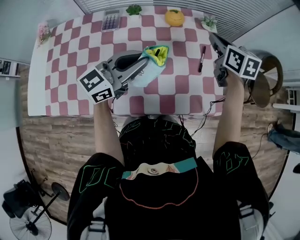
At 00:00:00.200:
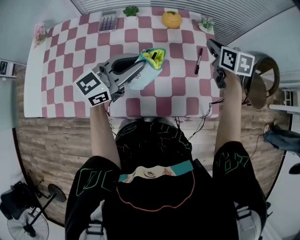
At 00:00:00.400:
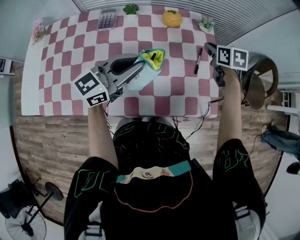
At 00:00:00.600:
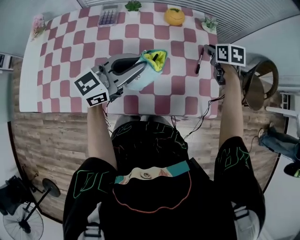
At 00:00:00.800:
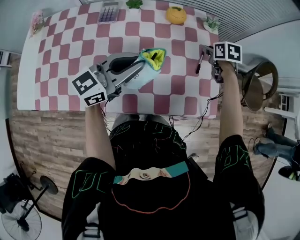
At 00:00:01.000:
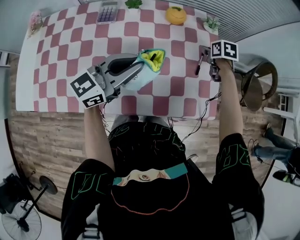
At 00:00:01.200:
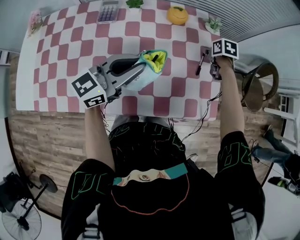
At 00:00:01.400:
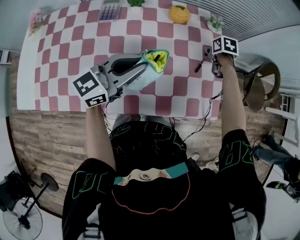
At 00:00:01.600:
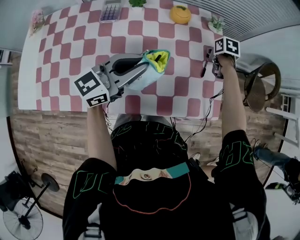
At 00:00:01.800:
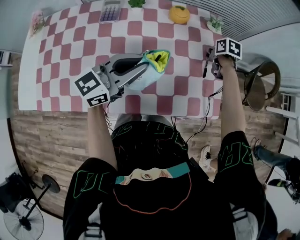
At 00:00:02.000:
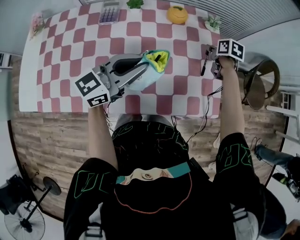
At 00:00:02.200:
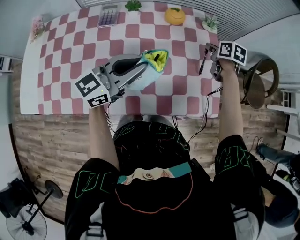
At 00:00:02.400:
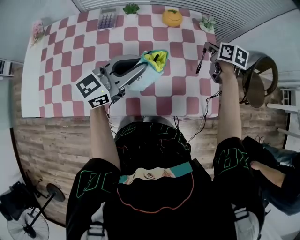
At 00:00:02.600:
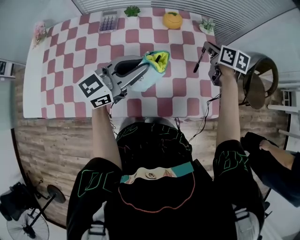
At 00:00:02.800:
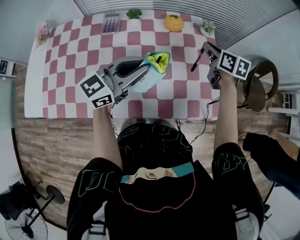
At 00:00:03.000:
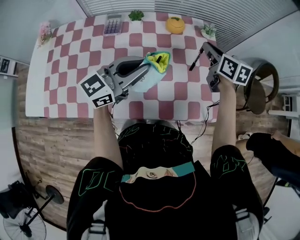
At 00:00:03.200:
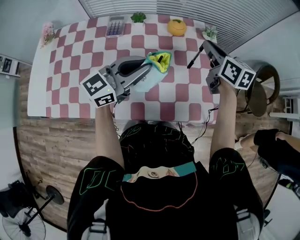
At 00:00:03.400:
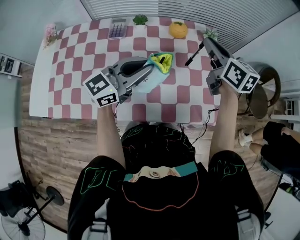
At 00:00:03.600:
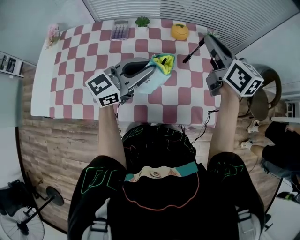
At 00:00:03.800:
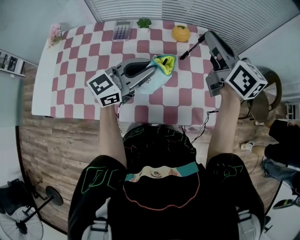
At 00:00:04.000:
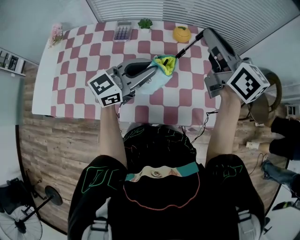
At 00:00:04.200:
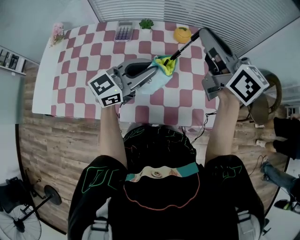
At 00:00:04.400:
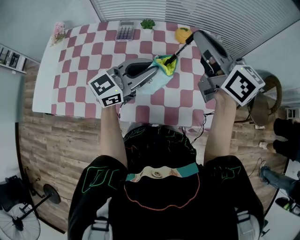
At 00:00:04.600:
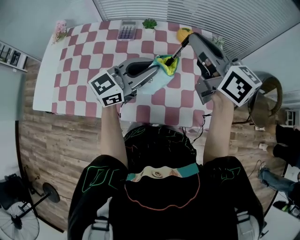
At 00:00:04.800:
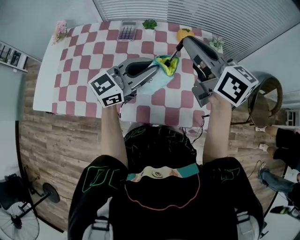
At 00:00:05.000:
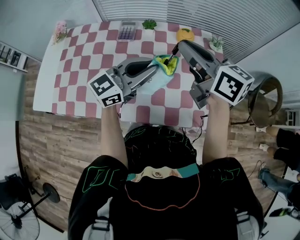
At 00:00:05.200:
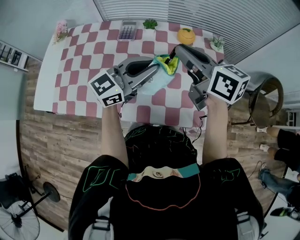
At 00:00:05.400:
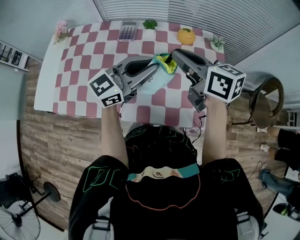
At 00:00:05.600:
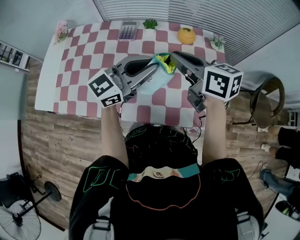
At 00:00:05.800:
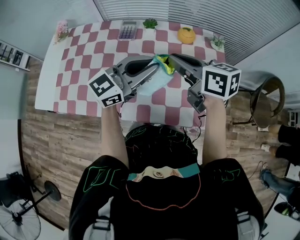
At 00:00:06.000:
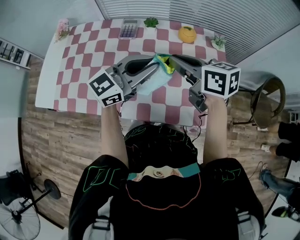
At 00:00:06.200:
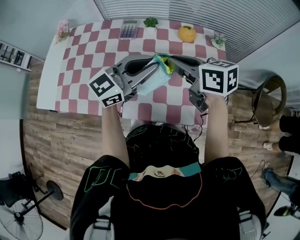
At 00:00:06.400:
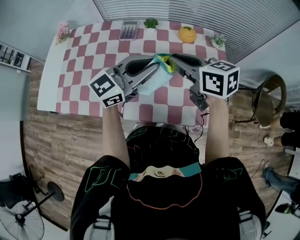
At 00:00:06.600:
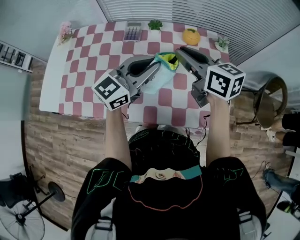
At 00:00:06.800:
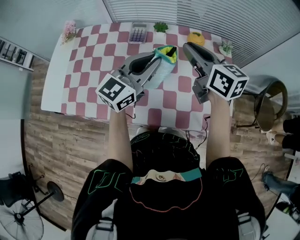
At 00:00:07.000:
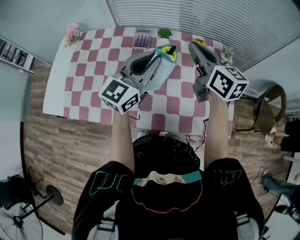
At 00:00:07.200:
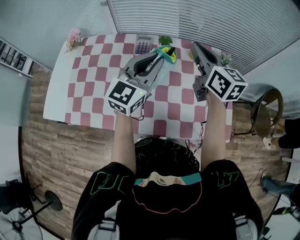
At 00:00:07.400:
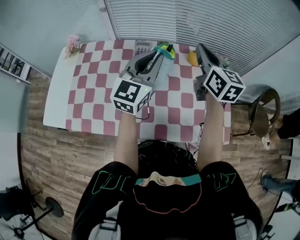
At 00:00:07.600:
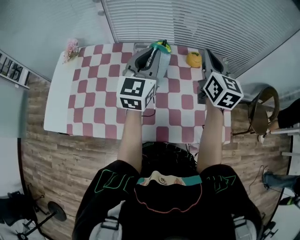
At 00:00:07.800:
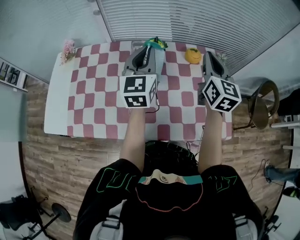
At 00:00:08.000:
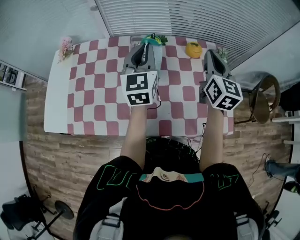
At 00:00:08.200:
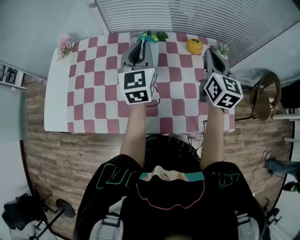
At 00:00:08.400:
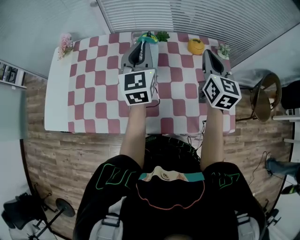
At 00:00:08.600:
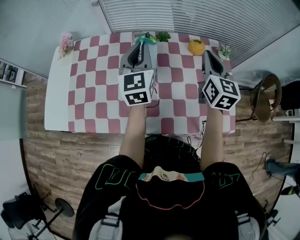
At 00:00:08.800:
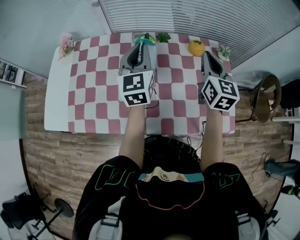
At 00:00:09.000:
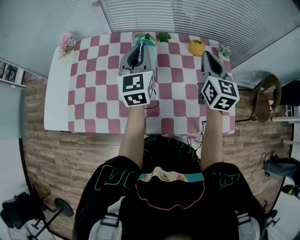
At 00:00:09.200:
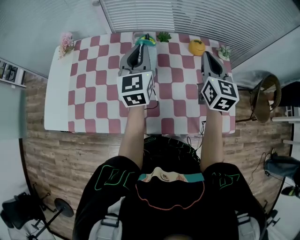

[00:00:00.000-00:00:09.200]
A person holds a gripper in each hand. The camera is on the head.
00:00:00.000 to 00:00:01.600: The right gripper shifts about 20 cm downward, and angles its fingers downward, by roughly 40 degrees.
00:00:01.600 to 00:00:03.000: The right gripper moves upward, approximately 20 cm, and tilts its fingers some 40 degrees upward.
00:00:03.000 to 00:00:04.600: The right gripper goes approximately 25 cm upward, to the left and backward, and turns by roughly 30 degrees.
00:00:04.600 to 00:00:06.200: The right gripper heads downward, covering approximately 10 cm, and changes its angle by roughly 30 degrees.
00:00:06.200 to 00:00:07.600: The left gripper travels forward, to the left and upward by roughly 15 cm, and swivels roughly 40 degrees; the right gripper travels forward and upward by approximately 15 cm, and swivels roughly 50 degrees.
00:00:07.600 to 00:00:09.200: The left gripper moves to the left and downward, approximately 10 cm. Meanwhile the right gripper is displaced downward by some 5 cm.

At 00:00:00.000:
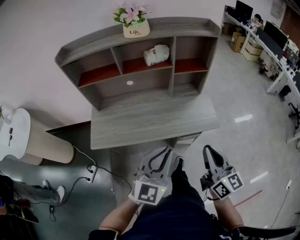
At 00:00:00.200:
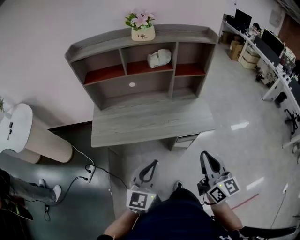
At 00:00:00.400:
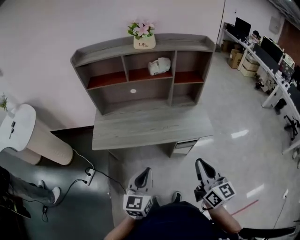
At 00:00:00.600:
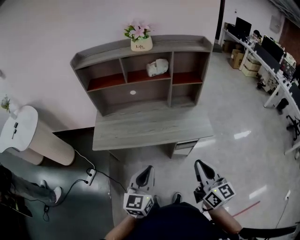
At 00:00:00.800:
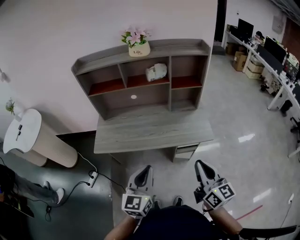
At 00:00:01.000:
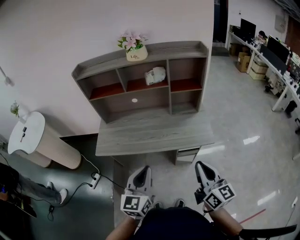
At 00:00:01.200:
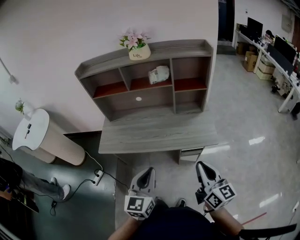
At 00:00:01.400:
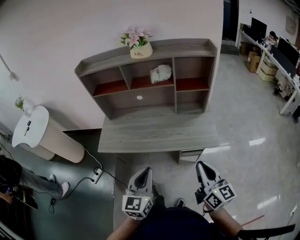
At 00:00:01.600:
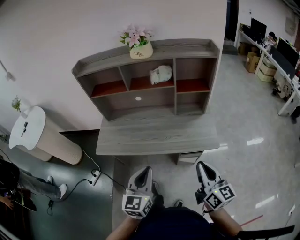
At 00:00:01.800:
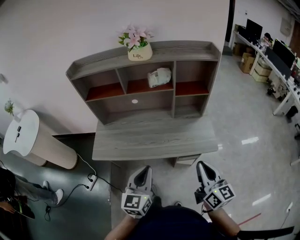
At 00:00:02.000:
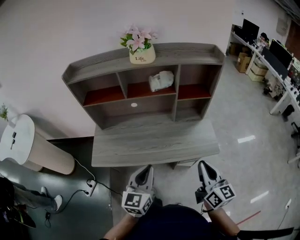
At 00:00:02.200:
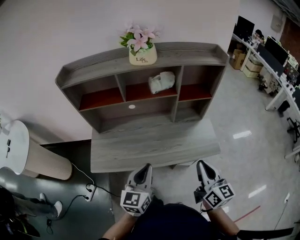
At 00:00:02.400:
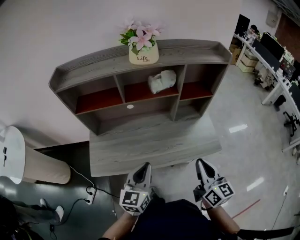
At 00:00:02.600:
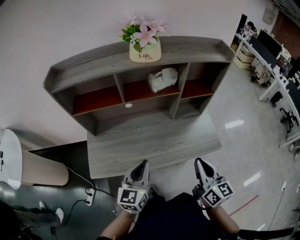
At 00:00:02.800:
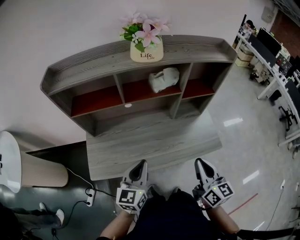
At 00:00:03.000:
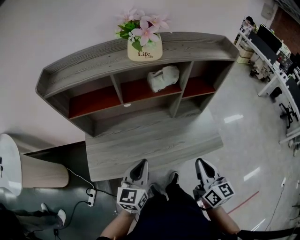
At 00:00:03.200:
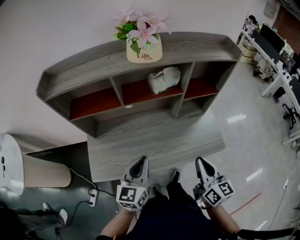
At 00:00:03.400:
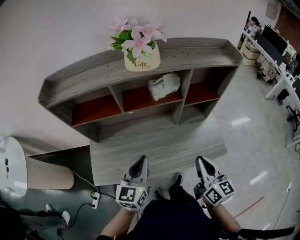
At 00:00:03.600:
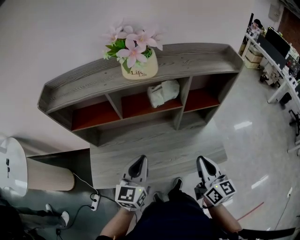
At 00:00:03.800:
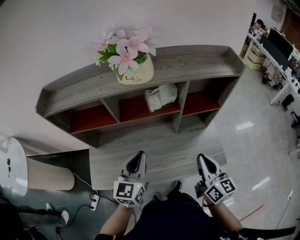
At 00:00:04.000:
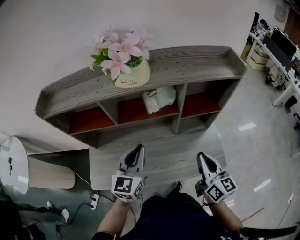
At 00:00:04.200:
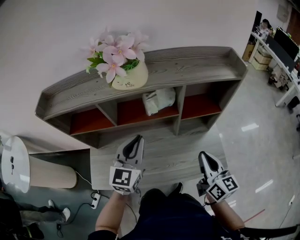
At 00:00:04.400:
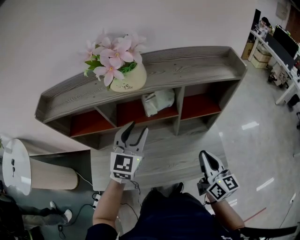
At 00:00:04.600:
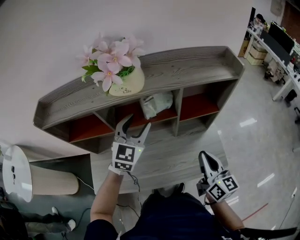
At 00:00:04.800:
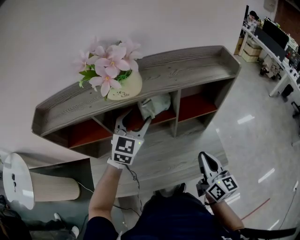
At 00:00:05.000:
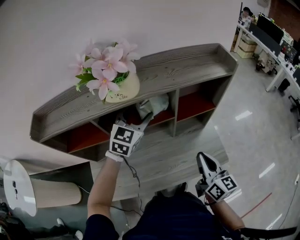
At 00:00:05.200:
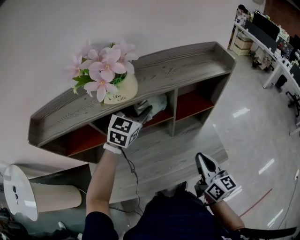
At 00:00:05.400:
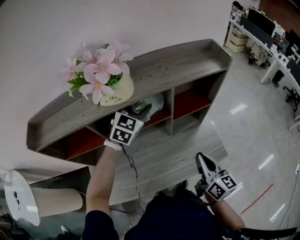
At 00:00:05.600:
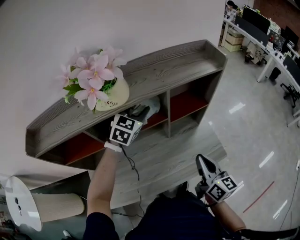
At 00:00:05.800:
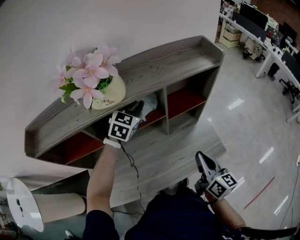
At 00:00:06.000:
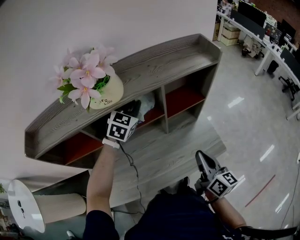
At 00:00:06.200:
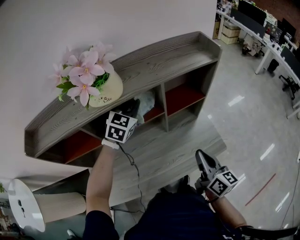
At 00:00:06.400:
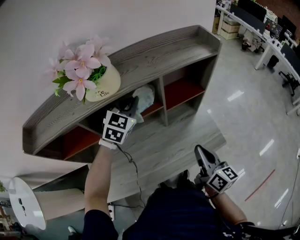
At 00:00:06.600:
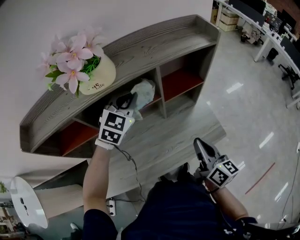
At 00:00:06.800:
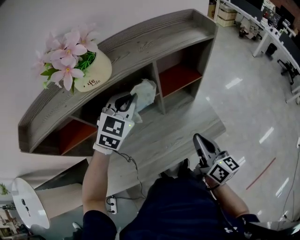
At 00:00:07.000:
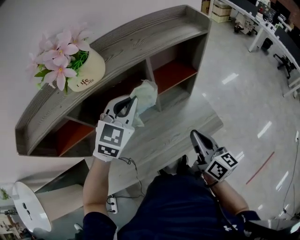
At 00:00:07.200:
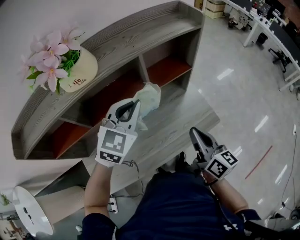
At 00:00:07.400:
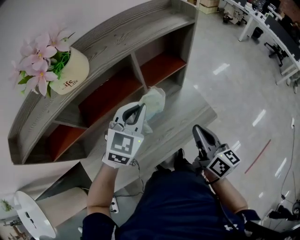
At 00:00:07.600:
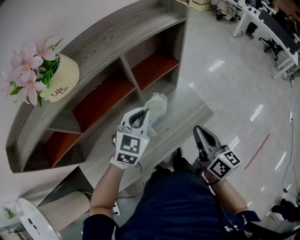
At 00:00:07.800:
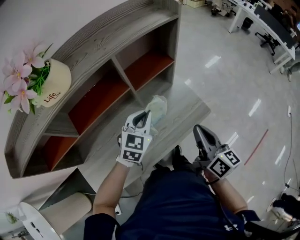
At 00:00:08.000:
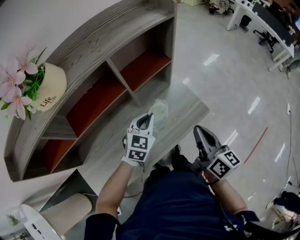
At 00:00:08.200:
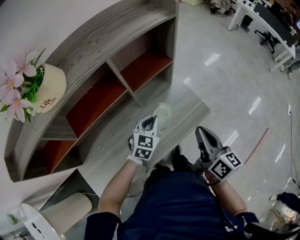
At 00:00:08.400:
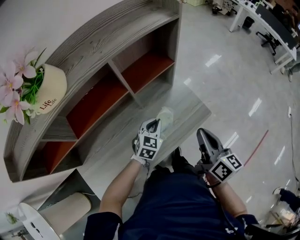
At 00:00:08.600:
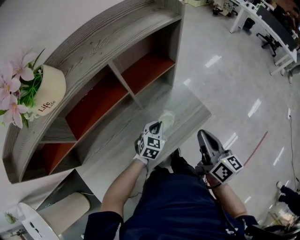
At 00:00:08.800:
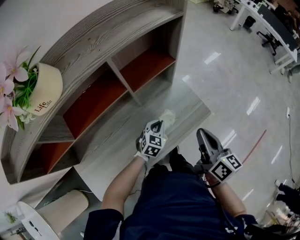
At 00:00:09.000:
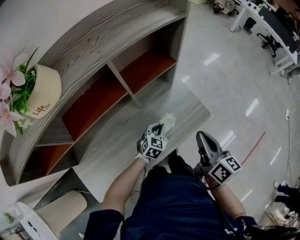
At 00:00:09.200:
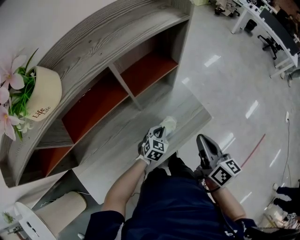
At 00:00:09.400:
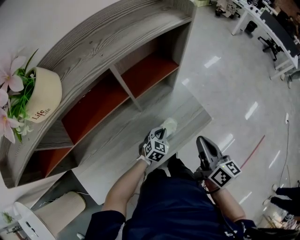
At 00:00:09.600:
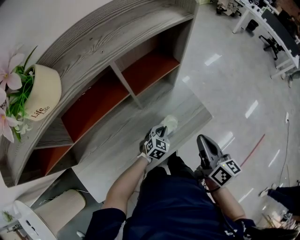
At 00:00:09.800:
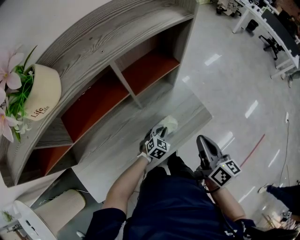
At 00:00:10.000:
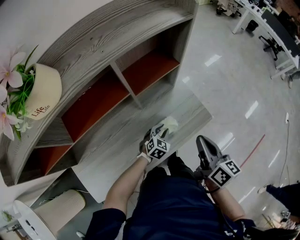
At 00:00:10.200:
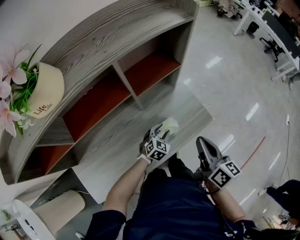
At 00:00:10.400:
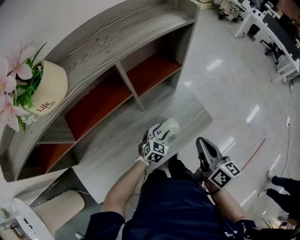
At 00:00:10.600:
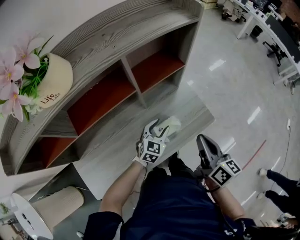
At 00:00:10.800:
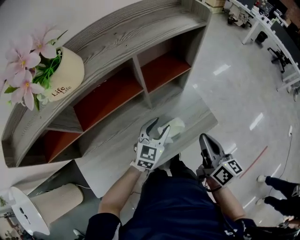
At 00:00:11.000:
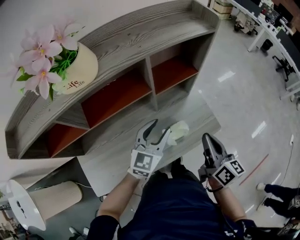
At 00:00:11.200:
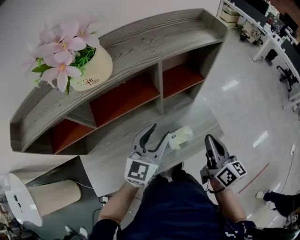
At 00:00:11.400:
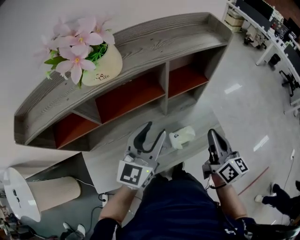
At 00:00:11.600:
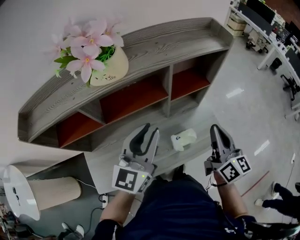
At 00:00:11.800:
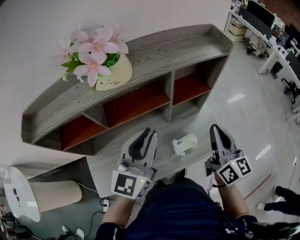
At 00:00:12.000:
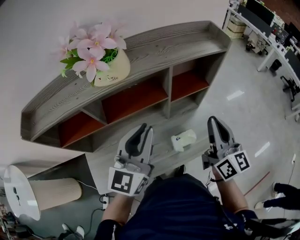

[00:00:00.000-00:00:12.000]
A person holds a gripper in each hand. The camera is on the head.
00:00:00.000 to 00:00:01.600: The left gripper moves roughly 10 cm to the left and comes back, and turns by roughly 30 degrees. Meanwhile the right gripper moves roughly 10 cm backward and comes back.
00:00:01.600 to 00:00:03.000: Both grippers travel together forward and to the left, about 20 cm.
00:00:03.000 to 00:00:04.400: The left gripper moves forward and upward, approximately 25 cm, turns by about 30 degrees, and opens its fingers. The right gripper travels forward and to the right by some 15 cm.
00:00:04.400 to 00:00:06.000: The left gripper goes approximately 15 cm forward, changes its angle by roughly 30 degrees, and closes up.
00:00:06.000 to 00:00:07.600: The left gripper goes roughly 20 cm backward, to the right and downward. The right gripper moves to the right, some 5 cm.
00:00:07.600 to 00:00:09.000: The left gripper shifts about 25 cm downward.
00:00:09.000 to 00:00:10.400: The left gripper opens up.
00:00:10.400 to 00:00:12.000: The right gripper is displaced upward and to the left by about 15 cm, and swivels about 30 degrees. Meanwhile the left gripper moves upward and to the left, approximately 40 cm, tilts its fingers some 40 degrees upward, and closes.

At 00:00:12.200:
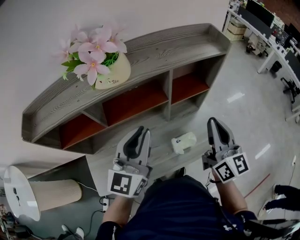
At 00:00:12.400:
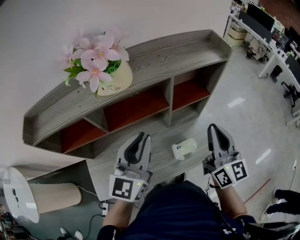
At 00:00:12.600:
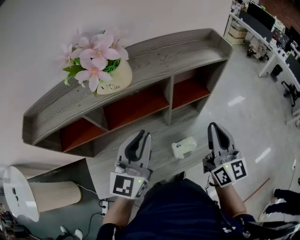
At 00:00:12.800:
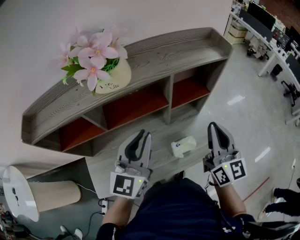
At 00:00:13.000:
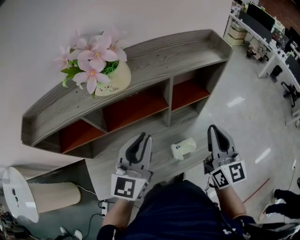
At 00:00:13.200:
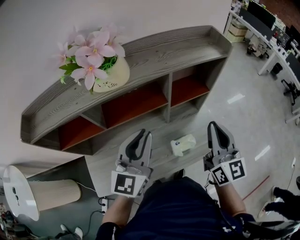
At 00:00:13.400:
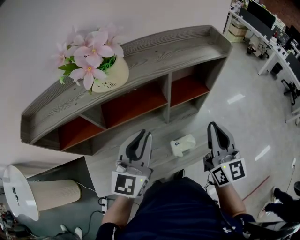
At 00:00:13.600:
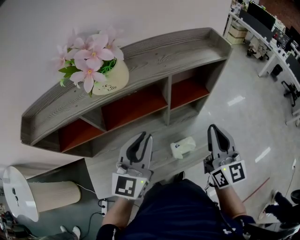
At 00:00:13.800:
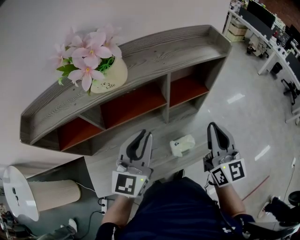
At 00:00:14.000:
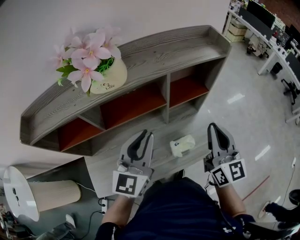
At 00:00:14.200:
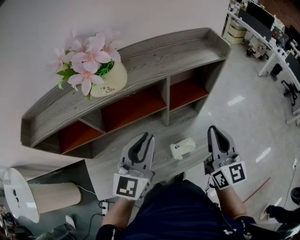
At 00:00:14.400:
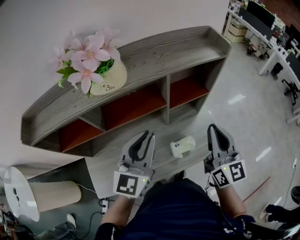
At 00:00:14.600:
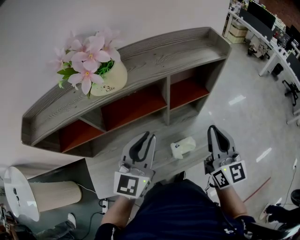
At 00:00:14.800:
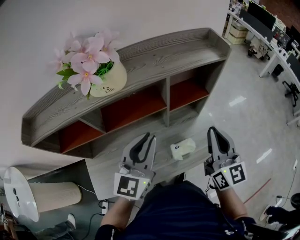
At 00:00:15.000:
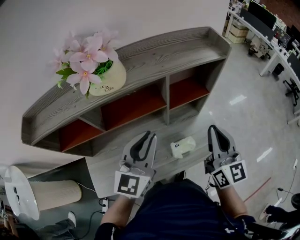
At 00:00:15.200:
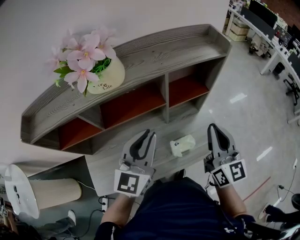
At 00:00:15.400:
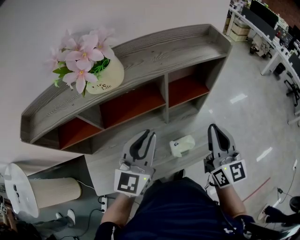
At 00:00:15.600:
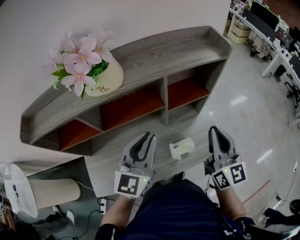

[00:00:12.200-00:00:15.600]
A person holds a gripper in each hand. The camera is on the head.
00:00:12.200 to 00:00:15.600: There are only small adjustments of the grippers.
